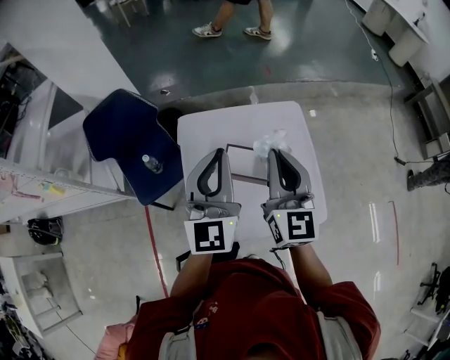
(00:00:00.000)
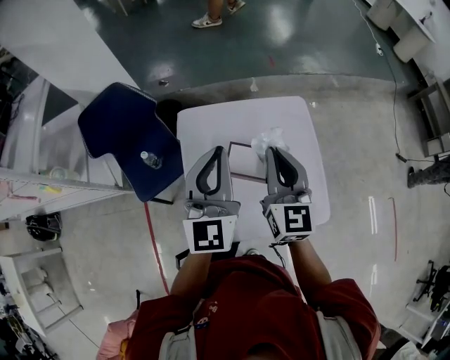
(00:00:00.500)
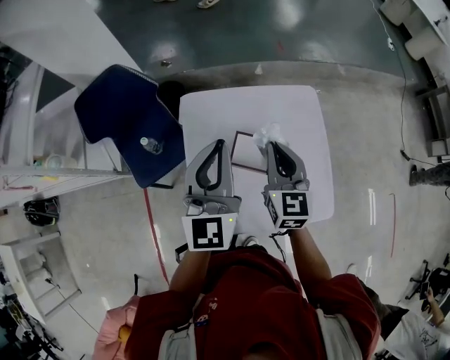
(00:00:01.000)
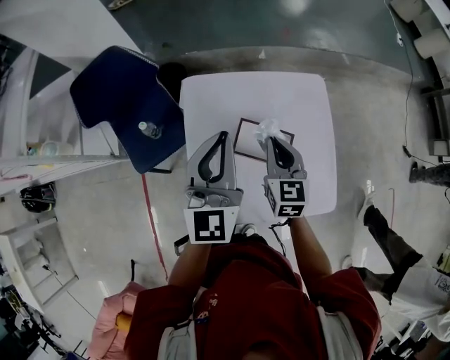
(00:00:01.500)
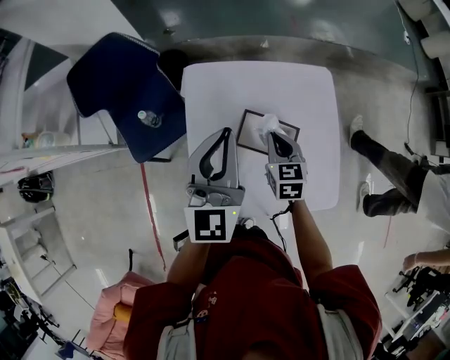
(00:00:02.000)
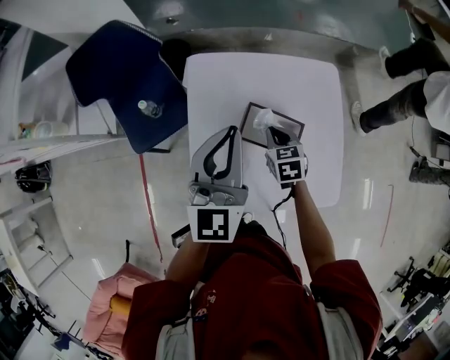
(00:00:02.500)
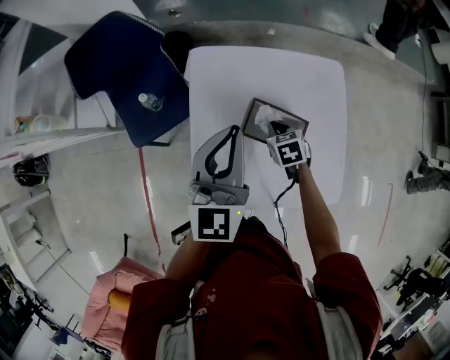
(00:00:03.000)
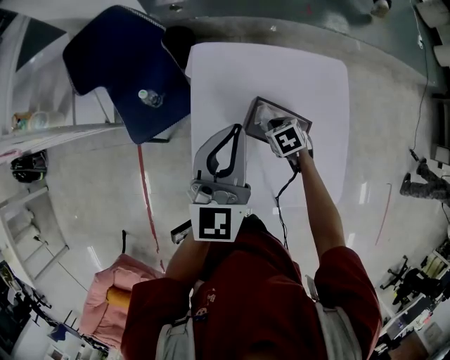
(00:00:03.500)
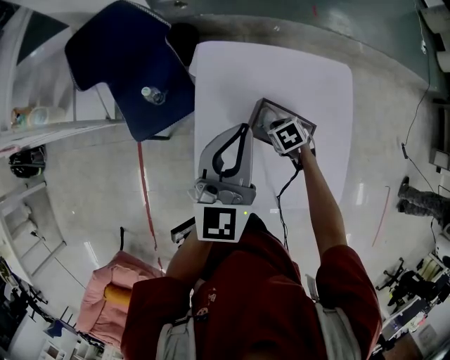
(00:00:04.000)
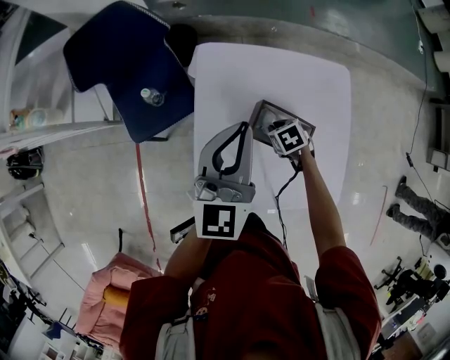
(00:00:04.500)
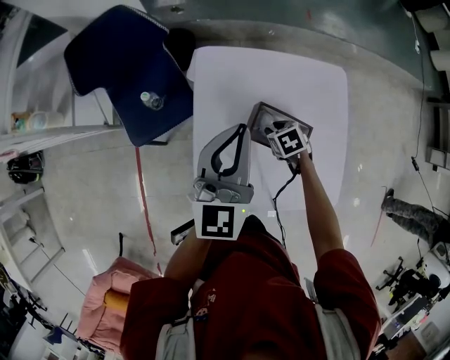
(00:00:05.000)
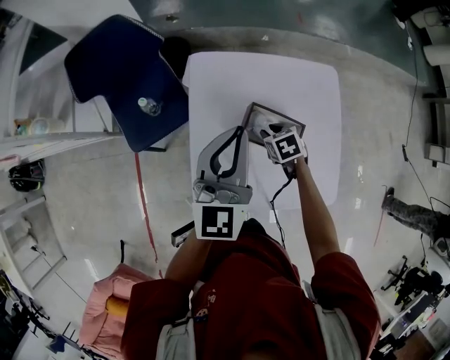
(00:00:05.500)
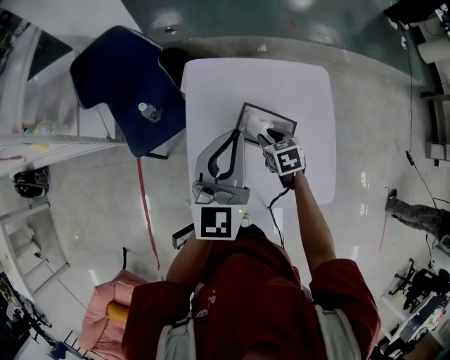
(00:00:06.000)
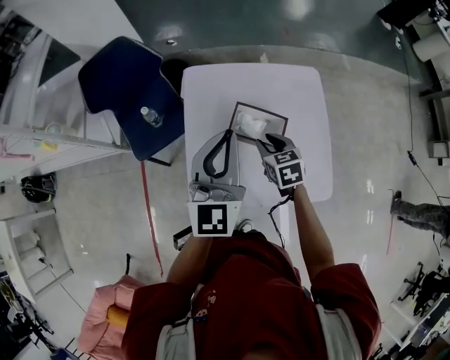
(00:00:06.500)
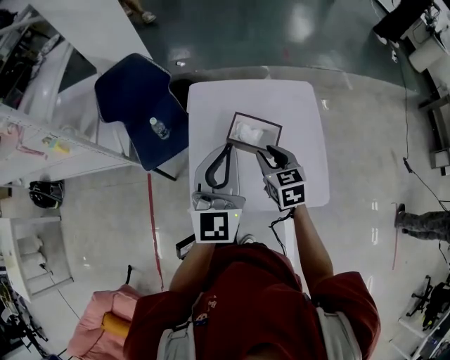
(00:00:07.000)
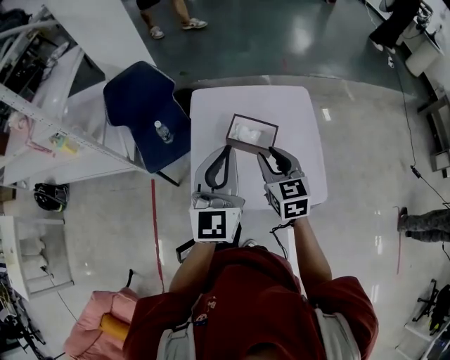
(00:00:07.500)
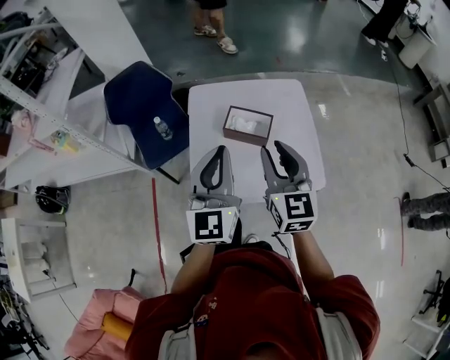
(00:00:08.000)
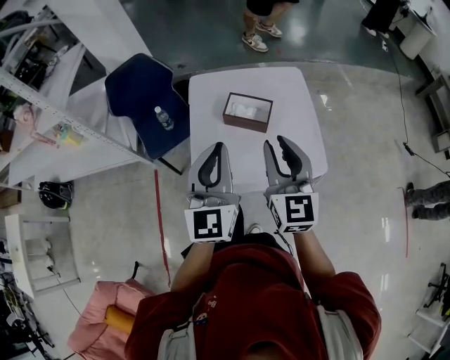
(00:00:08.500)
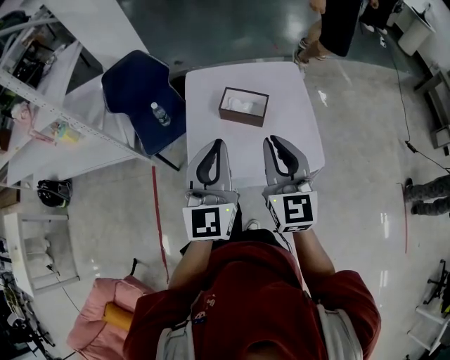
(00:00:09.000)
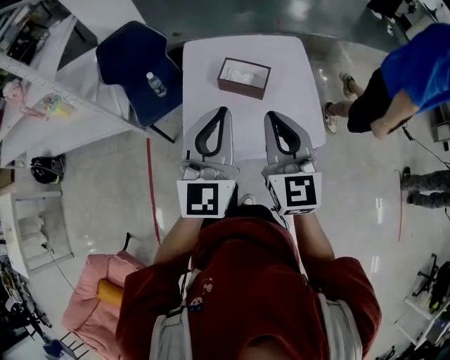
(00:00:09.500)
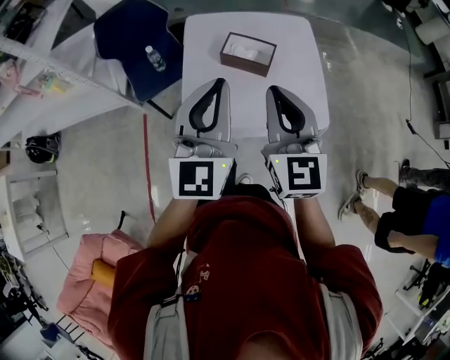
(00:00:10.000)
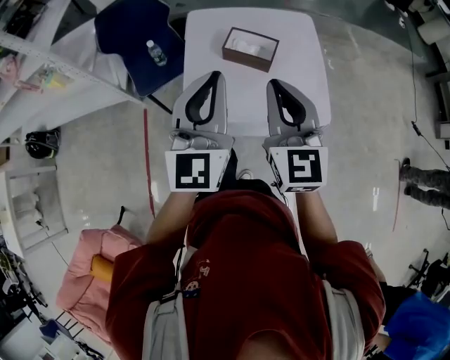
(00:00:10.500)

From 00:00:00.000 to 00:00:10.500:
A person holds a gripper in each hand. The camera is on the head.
From 00:00:00.000 to 00:00:02.000: The left gripper heads downward and forward, covering roughly 10 cm, while the right gripper heads downward, covering approximately 30 cm, and points its fingers approximately 40 degrees further downward.
From 00:00:02.000 to 00:00:04.000: The right gripper moves downward, about 15 cm, and points its fingers roughly 40 degrees further downward.
From 00:00:04.000 to 00:00:06.500: The left gripper shifts by roughly 10 cm; the right gripper shifts about 15 cm upward, tips its fingers upward by some 30 degrees, and opens its fingers.
From 00:00:06.500 to 00:00:08.500: The right gripper goes roughly 35 cm upward and backward, and tilts its fingers roughly 40 degrees upward. The left gripper travels backward by approximately 20 cm.
From 00:00:08.500 to 00:00:10.500: The right gripper closes its fingers.

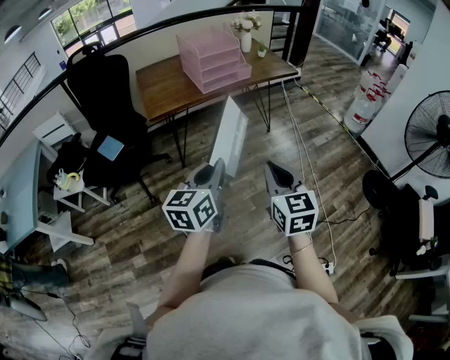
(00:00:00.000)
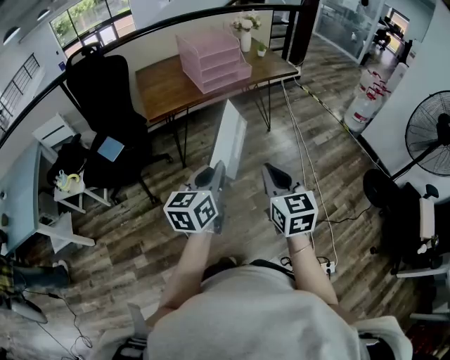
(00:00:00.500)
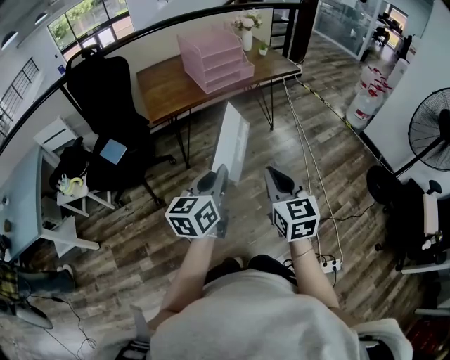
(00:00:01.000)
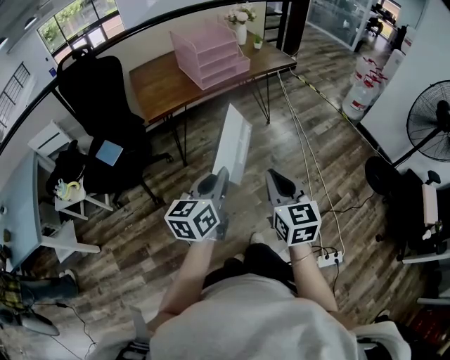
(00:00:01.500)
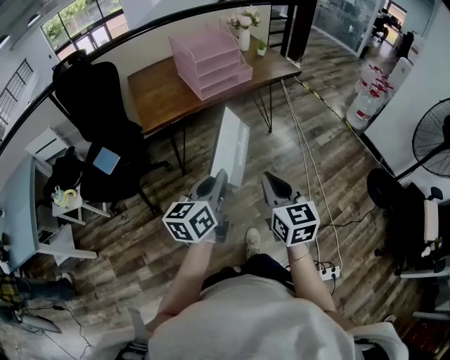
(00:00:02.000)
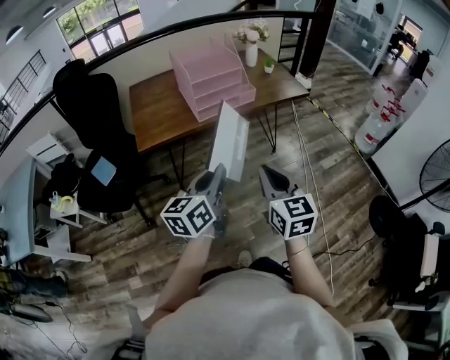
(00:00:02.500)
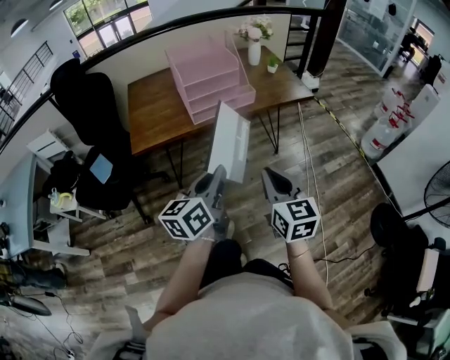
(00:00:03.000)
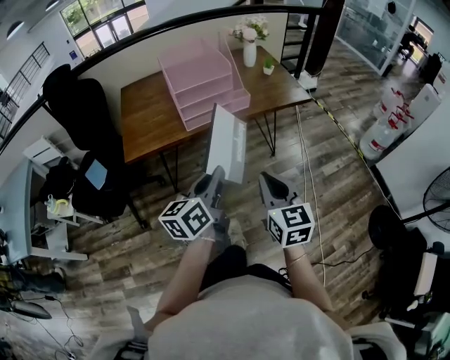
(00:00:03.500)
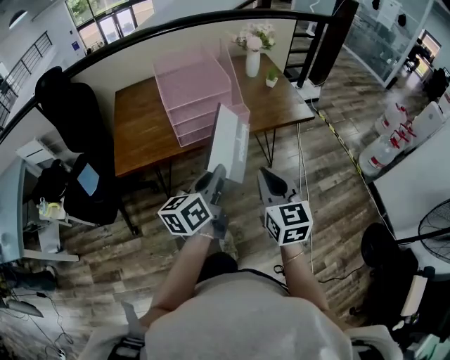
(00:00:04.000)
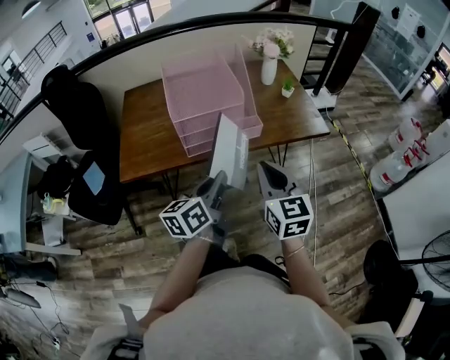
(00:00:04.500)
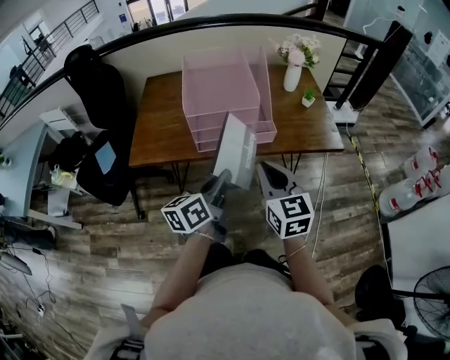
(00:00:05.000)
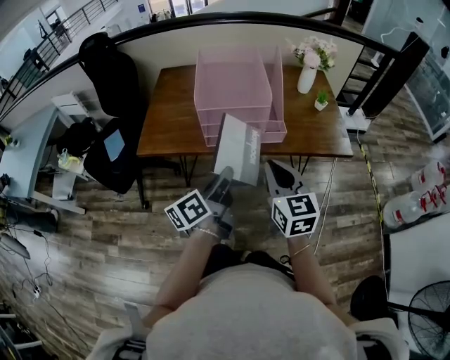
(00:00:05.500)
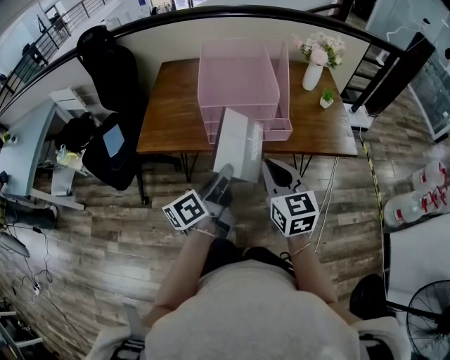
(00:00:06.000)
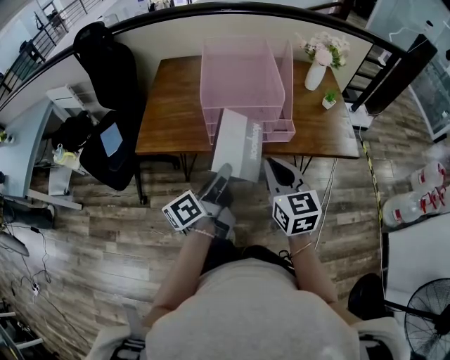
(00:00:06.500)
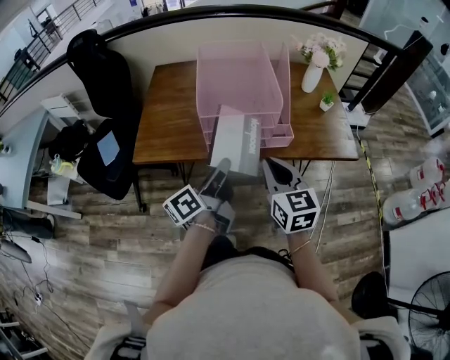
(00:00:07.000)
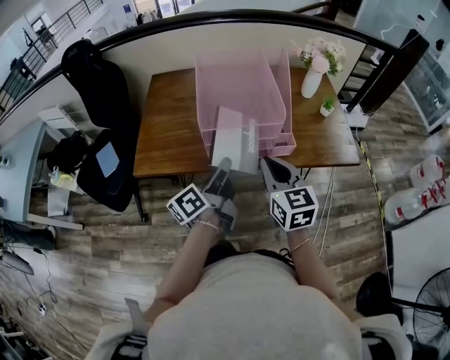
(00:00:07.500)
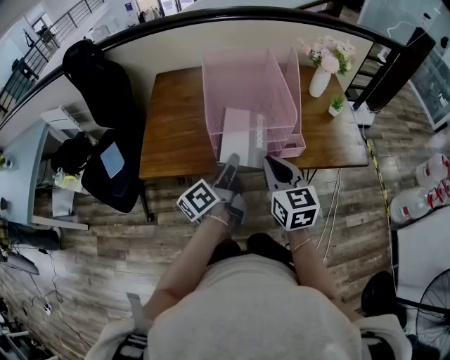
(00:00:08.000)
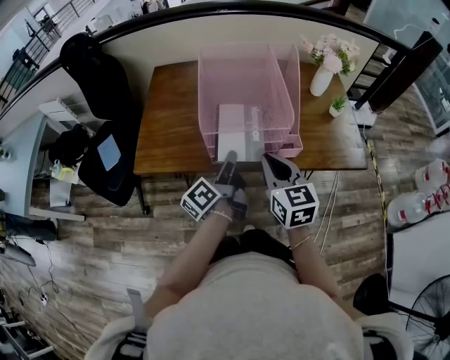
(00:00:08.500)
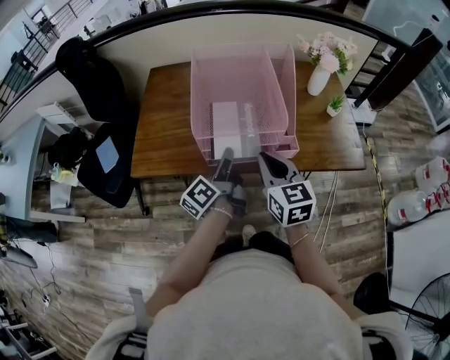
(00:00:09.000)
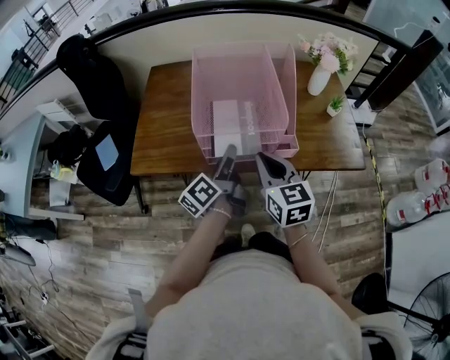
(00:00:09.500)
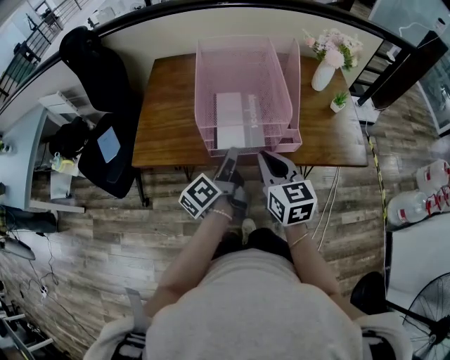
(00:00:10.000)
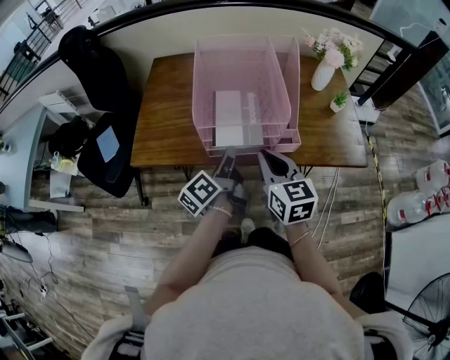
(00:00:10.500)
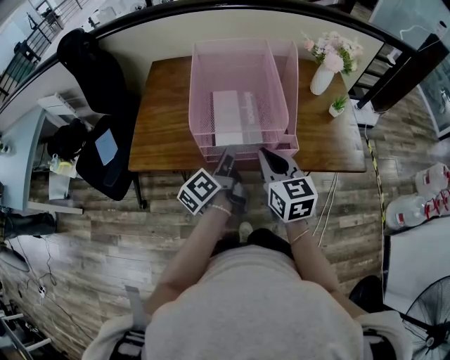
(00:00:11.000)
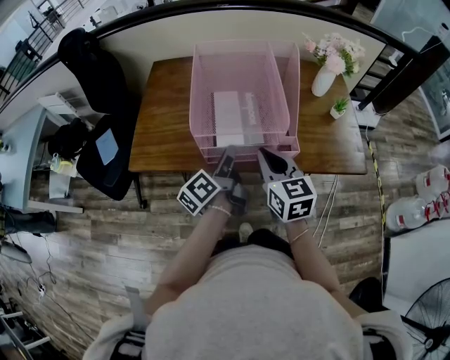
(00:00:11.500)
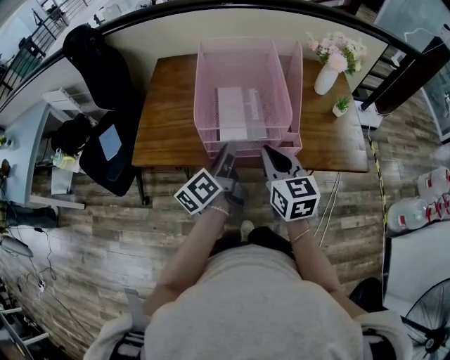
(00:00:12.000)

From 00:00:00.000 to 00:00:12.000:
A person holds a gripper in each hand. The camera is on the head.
From 00:00:00.000 to 00:00:02.000: Both grippers travel together forward, roughly 5 cm.
From 00:00:02.000 to 00:00:04.000: Both grippers travel together forward, about 35 cm.
From 00:00:04.000 to 00:00:06.000: The left gripper heads forward, covering approximately 5 cm, and changes its angle by some 30 degrees. The right gripper travels forward by about 10 cm, and rotates about 20 degrees.
From 00:00:06.000 to 00:00:08.000: Both grippers travel together forward, roughly 10 cm.
From 00:00:08.000 to 00:00:12.000: There are only small adjustments of the grippers.

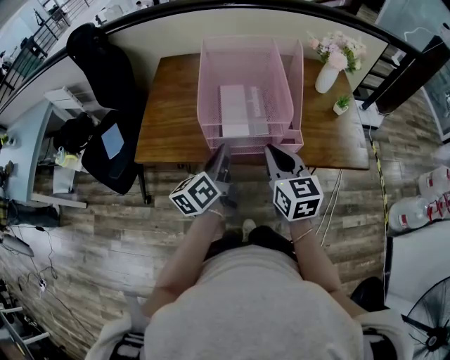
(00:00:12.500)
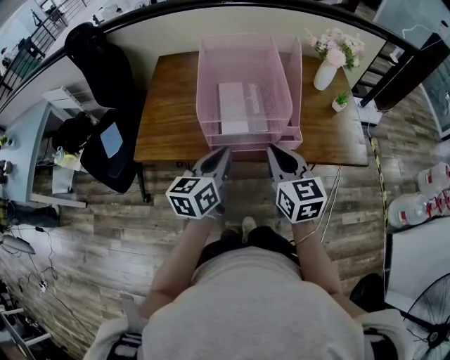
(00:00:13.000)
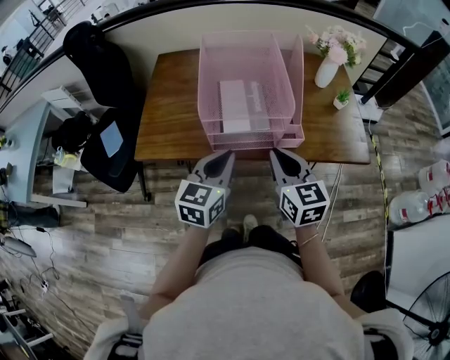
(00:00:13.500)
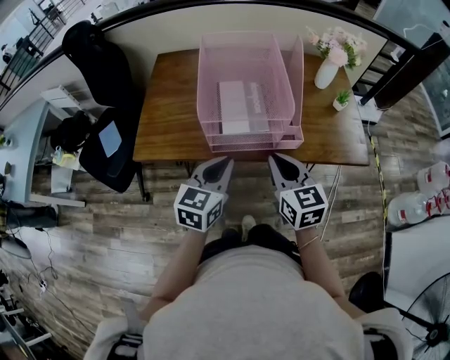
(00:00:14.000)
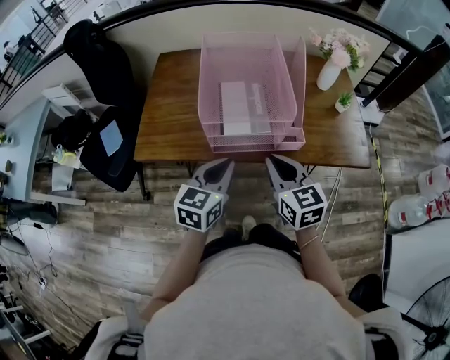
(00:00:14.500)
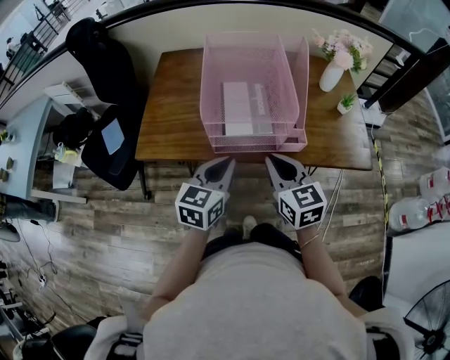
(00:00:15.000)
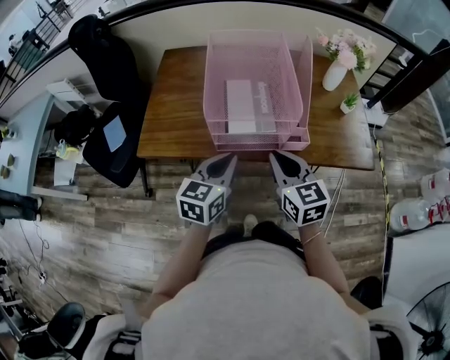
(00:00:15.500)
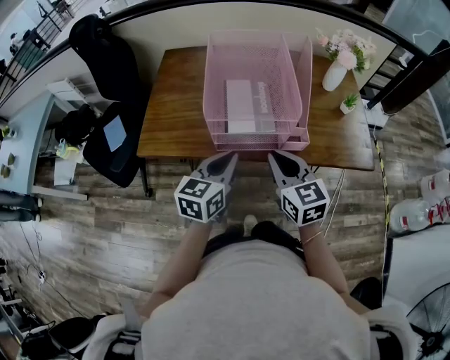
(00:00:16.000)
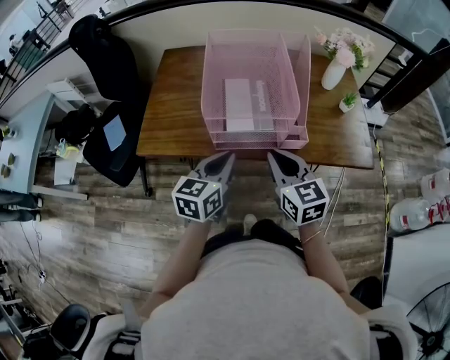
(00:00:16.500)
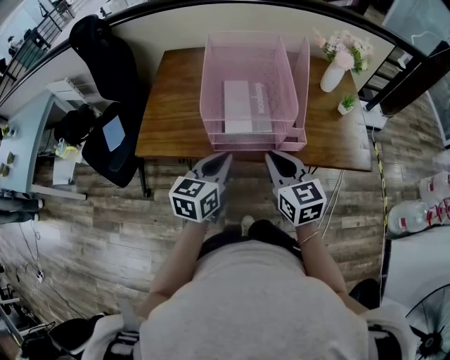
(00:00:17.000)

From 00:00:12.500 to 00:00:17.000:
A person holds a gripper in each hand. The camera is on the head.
From 00:00:12.500 to 00:00:14.500: The left gripper turns by about 40 degrees.
From 00:00:14.500 to 00:00:17.000: The grippers make only small movements.
